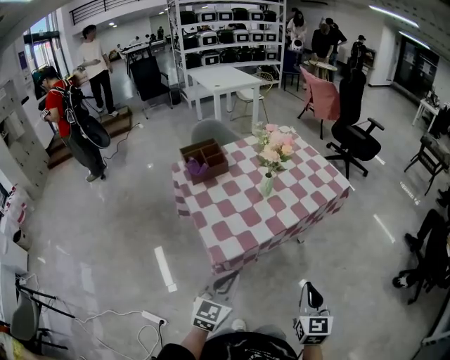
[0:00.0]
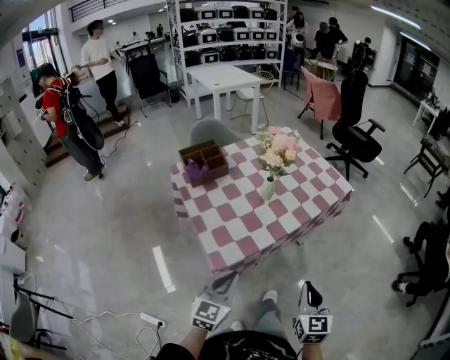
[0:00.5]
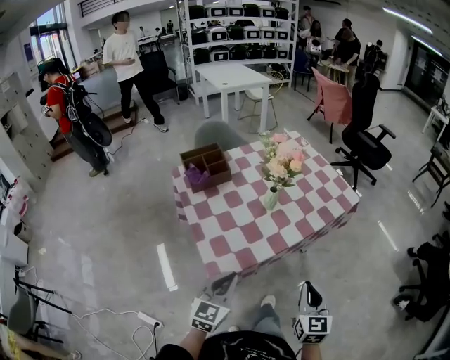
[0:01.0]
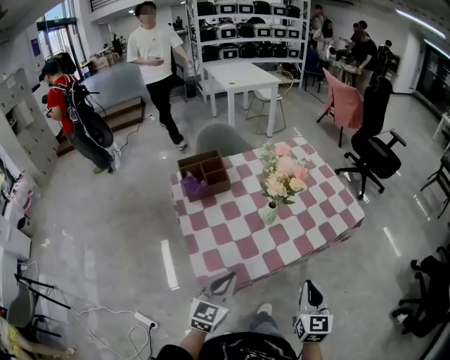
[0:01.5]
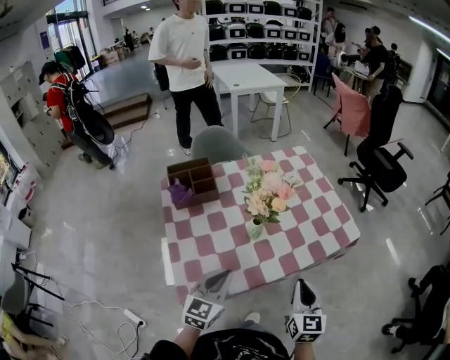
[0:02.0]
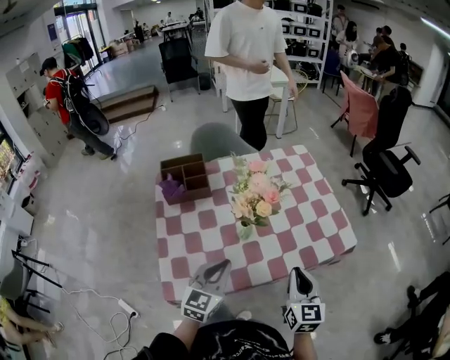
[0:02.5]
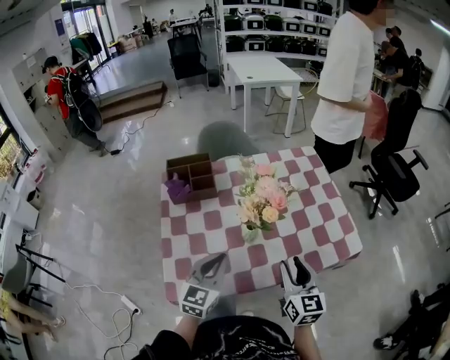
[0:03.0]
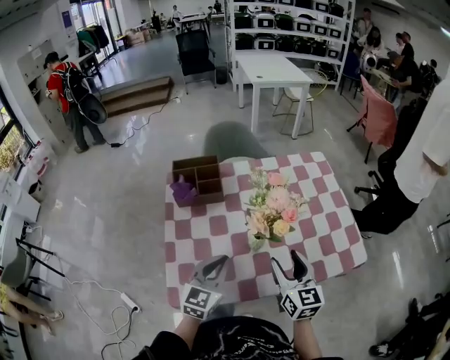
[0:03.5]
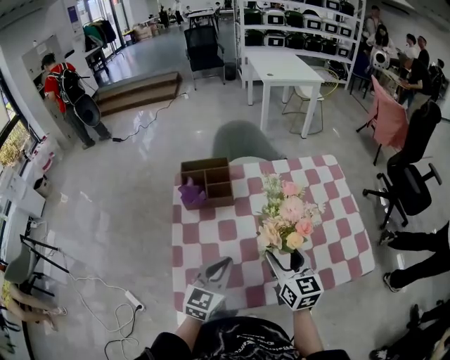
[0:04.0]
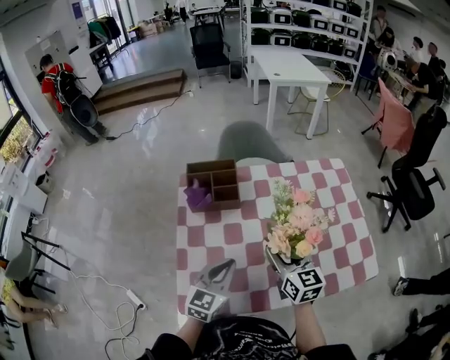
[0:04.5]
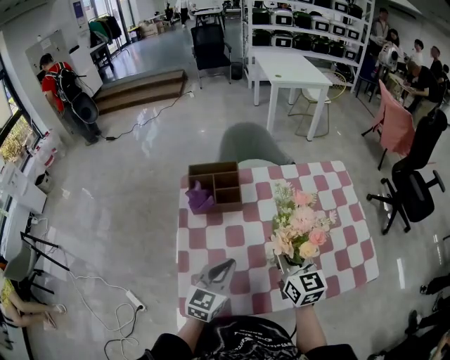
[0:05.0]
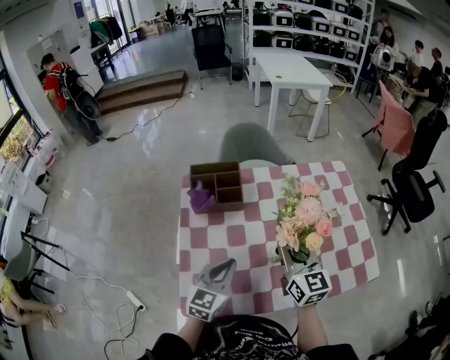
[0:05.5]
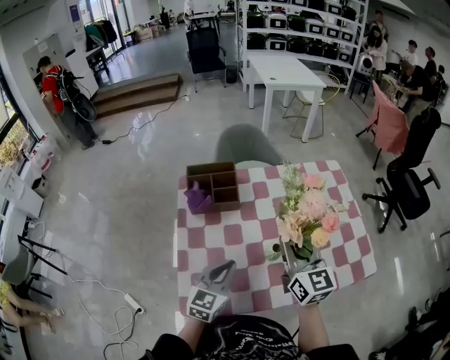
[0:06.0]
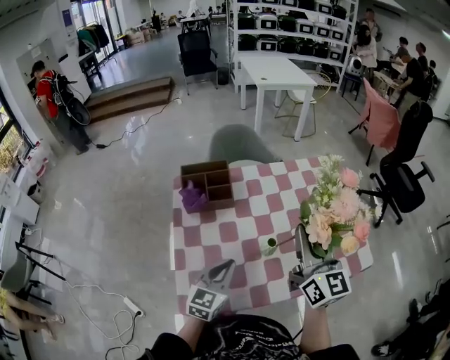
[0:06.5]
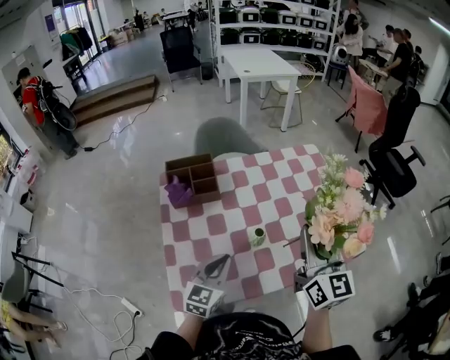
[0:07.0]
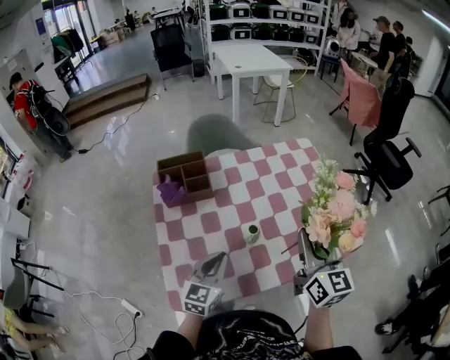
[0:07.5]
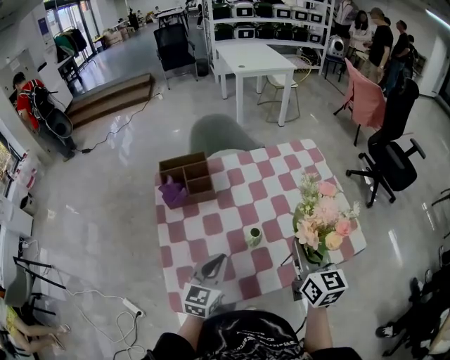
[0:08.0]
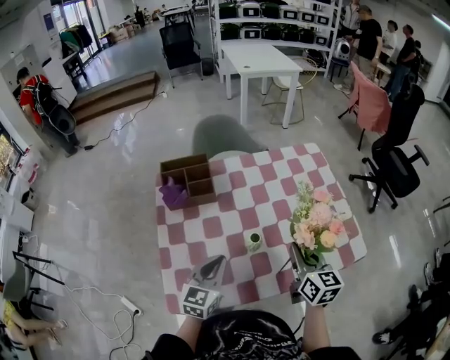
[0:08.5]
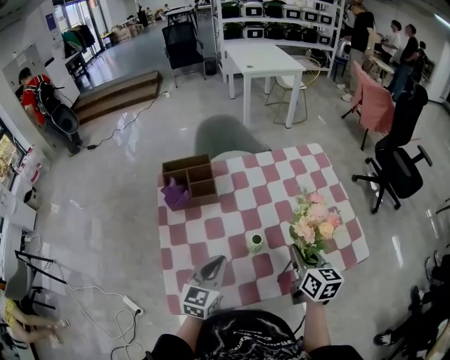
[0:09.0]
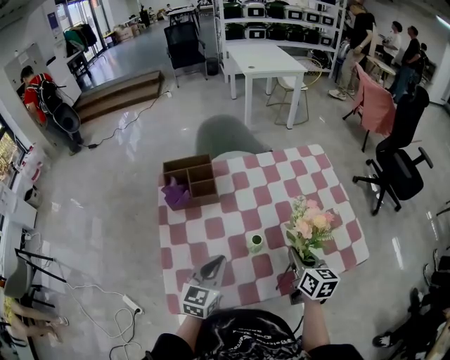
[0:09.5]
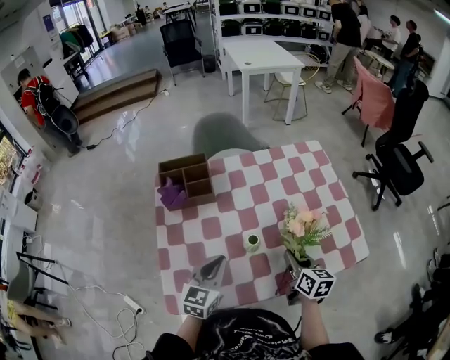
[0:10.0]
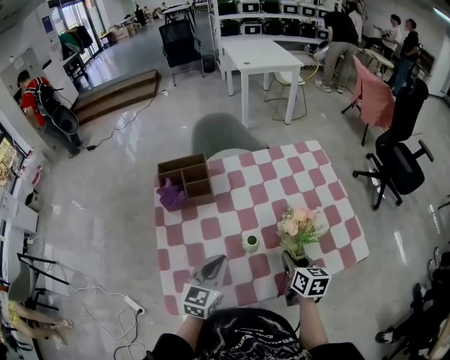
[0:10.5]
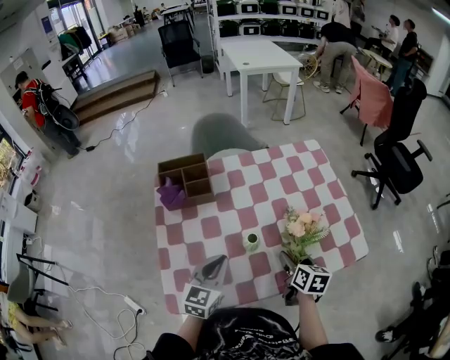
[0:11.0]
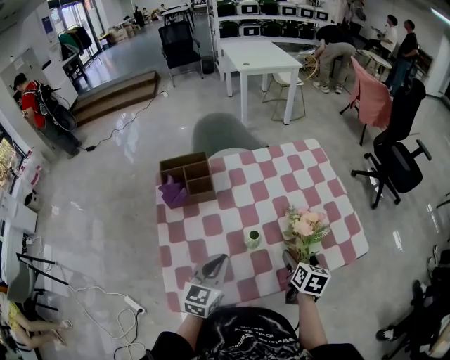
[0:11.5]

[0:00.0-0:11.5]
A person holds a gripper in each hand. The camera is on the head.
0:00.0 to 0:02.0: Both grippers move forward, about 25 cm.
0:02.0 to 0:04.0: The right gripper is displaced forward and to the left by some 20 cm, rotates about 30 degrees, and opens its fingers; the left gripper shifts roughly 10 cm forward.
0:04.0 to 0:06.0: The right gripper heads upward, covering about 10 cm, and closes up.
0:06.0 to 0:07.5: The right gripper heads to the right and backward, covering about 15 cm.
0:07.5 to 0:09.5: The right gripper goes roughly 15 cm downward, and turns by approximately 30 degrees.
0:09.5 to 0:11.5: The right gripper is displaced downward by about 5 cm, swivels about 20 degrees, and opens.

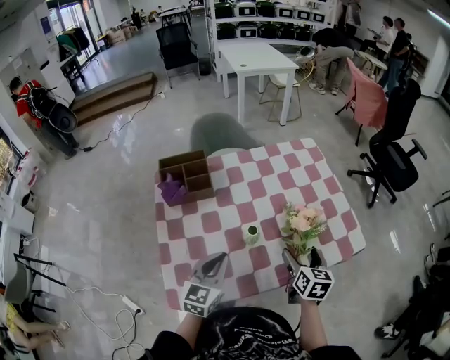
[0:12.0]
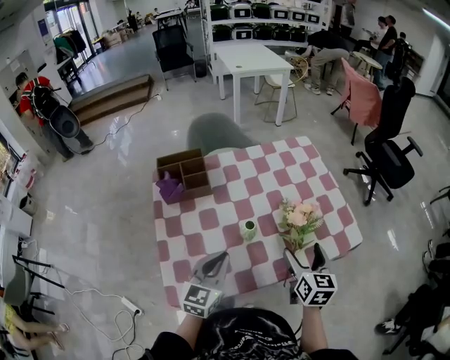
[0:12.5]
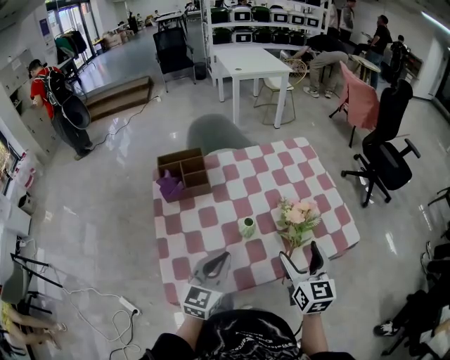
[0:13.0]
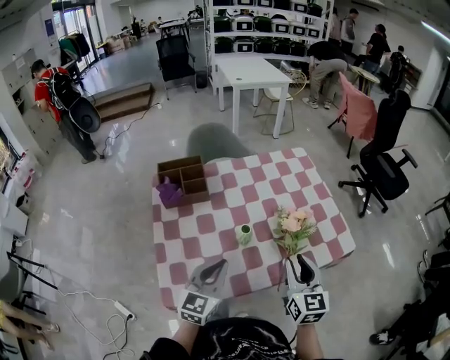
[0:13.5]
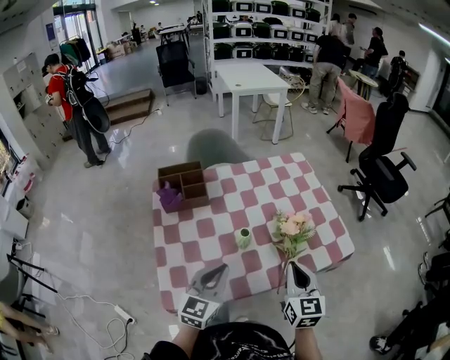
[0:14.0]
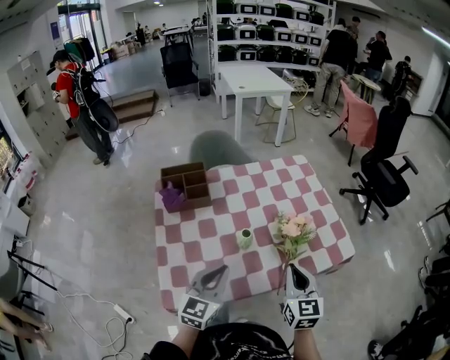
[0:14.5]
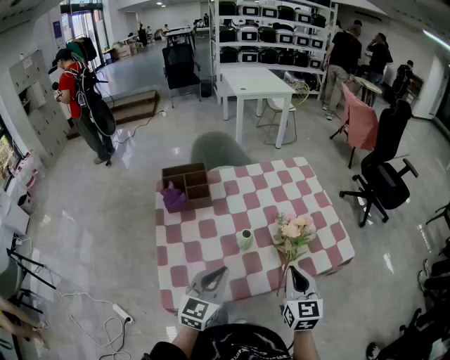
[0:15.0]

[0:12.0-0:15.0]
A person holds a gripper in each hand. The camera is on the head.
0:12.0 to 0:13.5: The right gripper shifts approximately 10 cm upward and backward, changes its angle by about 20 degrees, and closes up. The left gripper ends up approximately 5 cm from where it was.
0:13.5 to 0:15.0: There are only small adjustments of the grippers.

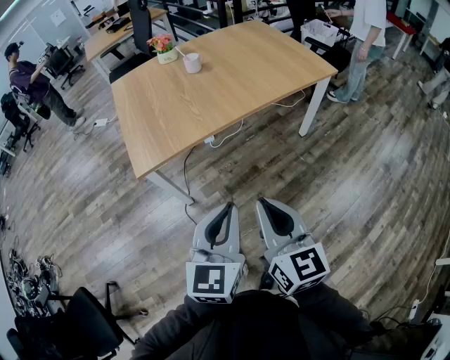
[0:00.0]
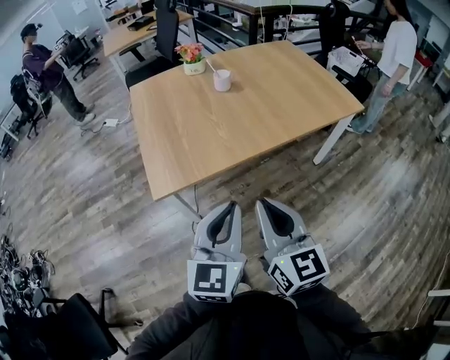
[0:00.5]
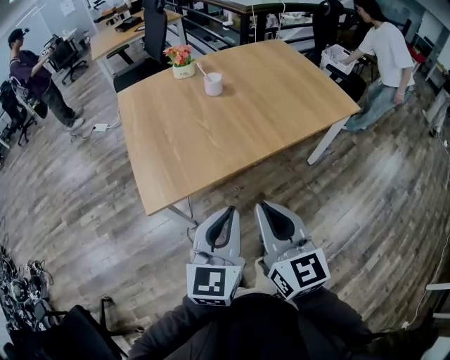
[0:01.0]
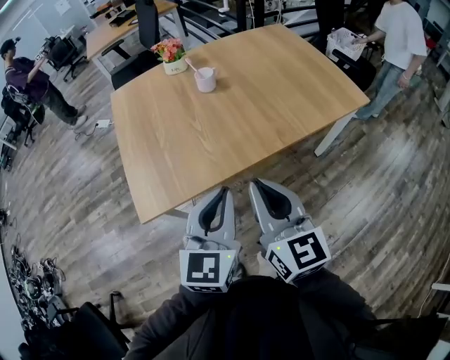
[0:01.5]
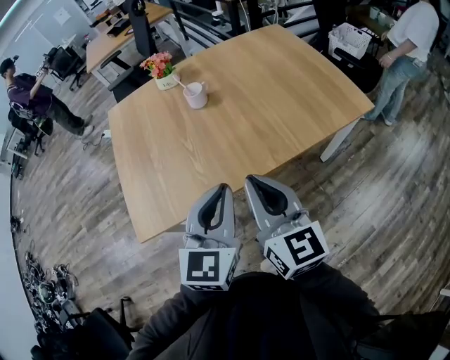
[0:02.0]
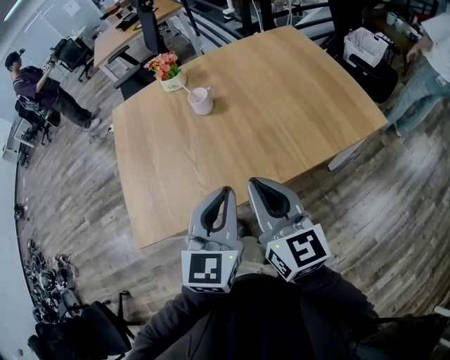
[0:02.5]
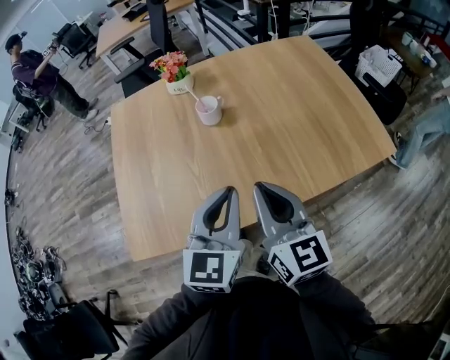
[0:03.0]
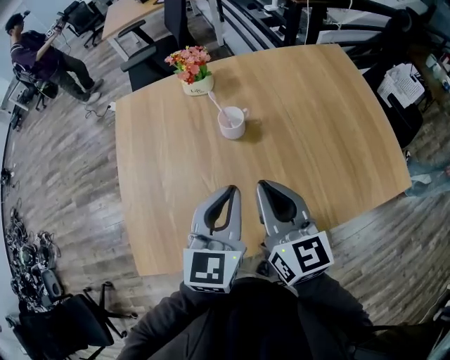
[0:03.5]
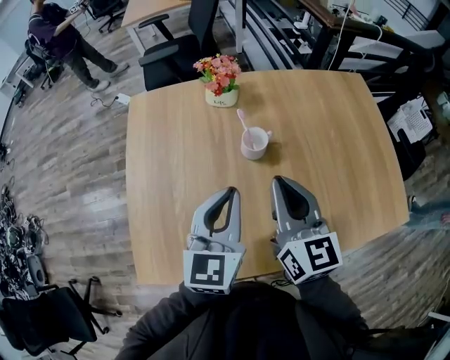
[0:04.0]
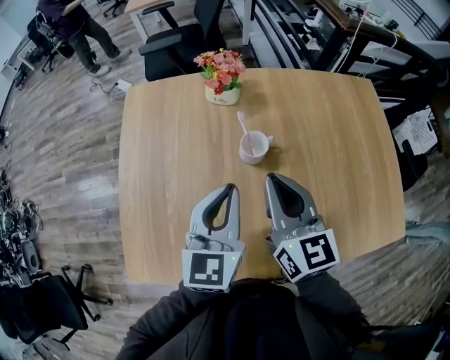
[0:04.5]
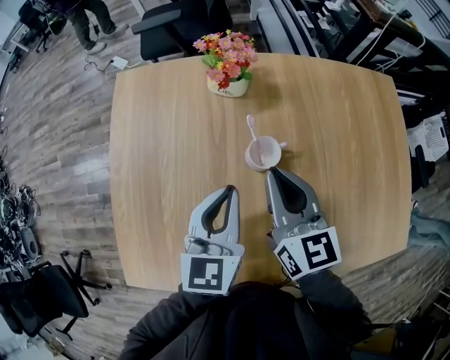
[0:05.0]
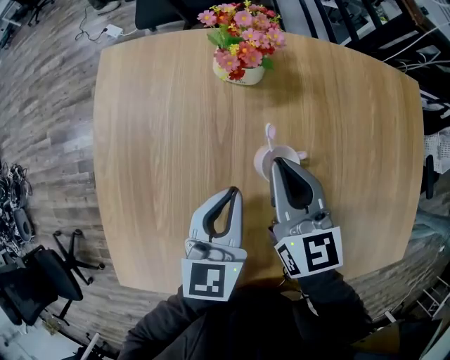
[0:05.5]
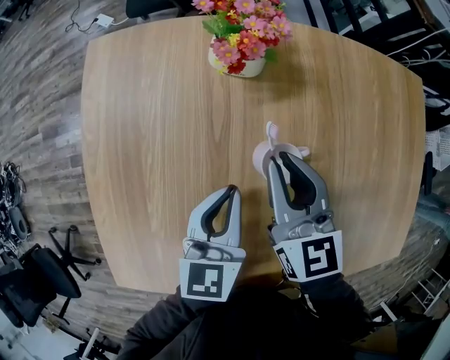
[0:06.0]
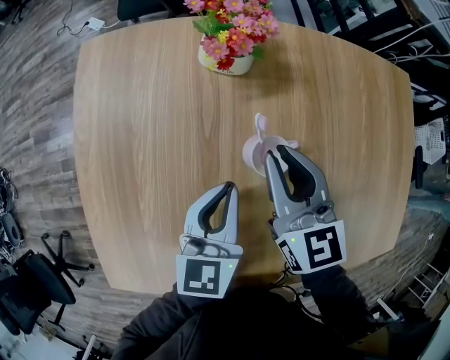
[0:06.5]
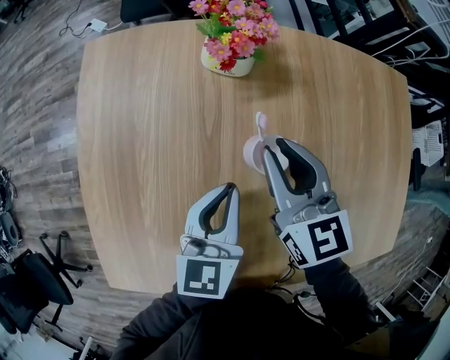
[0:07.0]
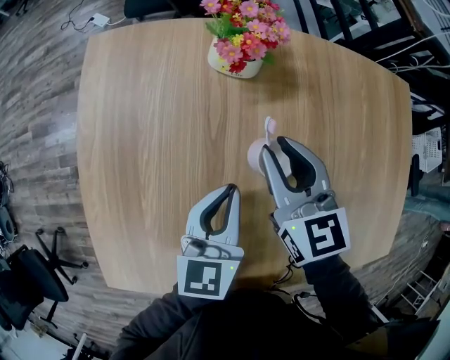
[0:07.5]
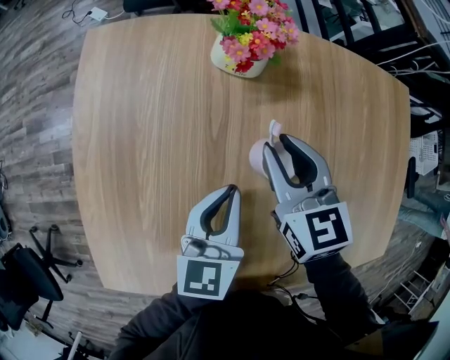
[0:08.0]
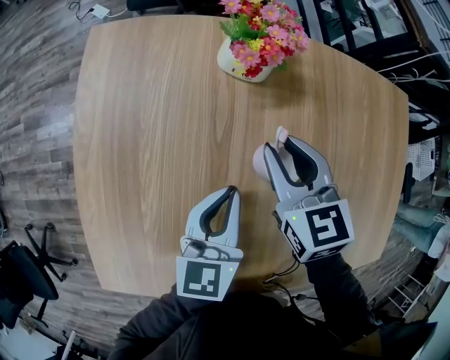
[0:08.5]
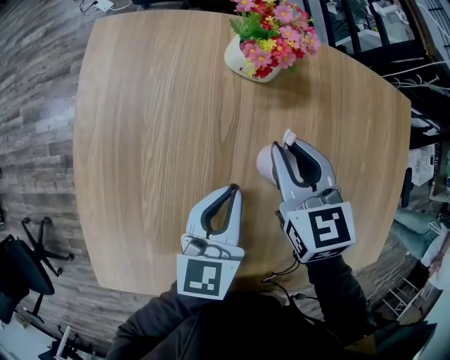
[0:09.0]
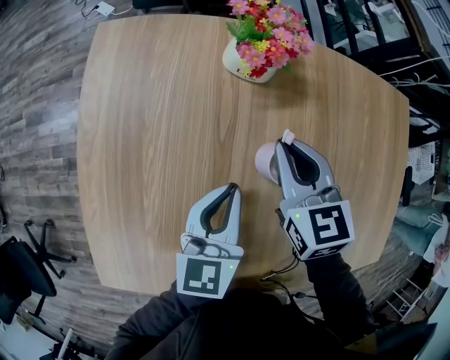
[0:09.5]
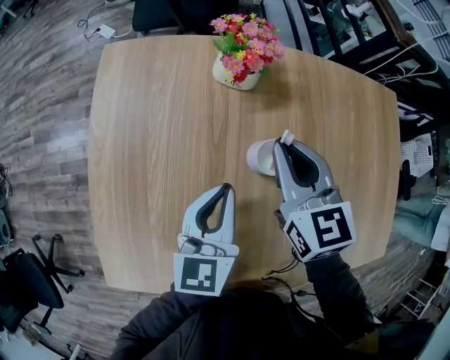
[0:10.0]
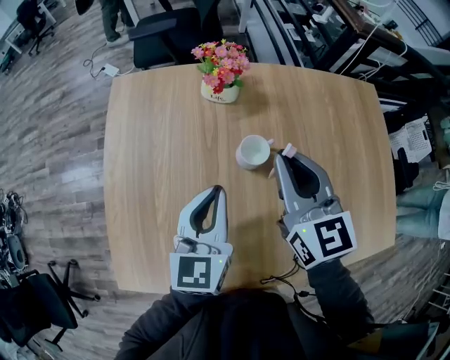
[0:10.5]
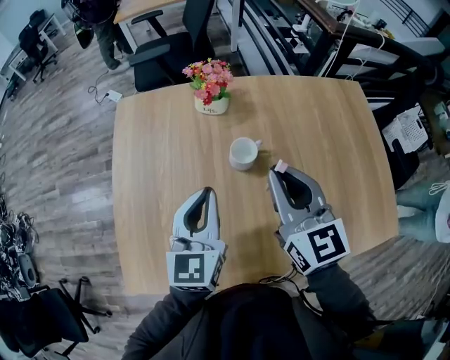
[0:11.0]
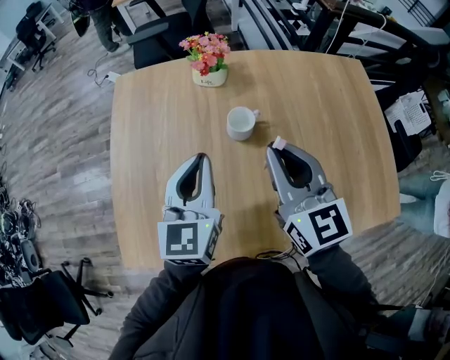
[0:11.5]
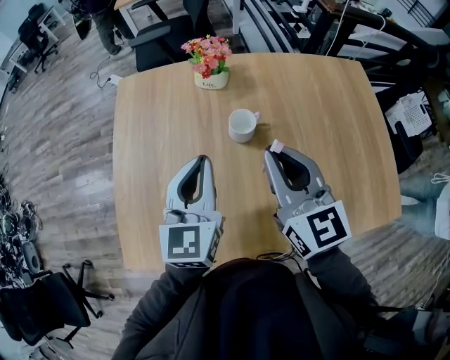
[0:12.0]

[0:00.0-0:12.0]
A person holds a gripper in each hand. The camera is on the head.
0:00.0 to 0:02.0: The grippers both shift forward by some 35 cm.
0:02.0 to 0:04.0: The two grippers go roughly 30 cm forward.
0:04.0 to 0:06.0: The left gripper travels downward and forward by about 20 cm, and swivels about 20 degrees; the right gripper moves forward and downward, roughly 25 cm.
0:06.0 to 0:08.0: The grippers make only small movements.
0:08.0 to 0:10.0: The right gripper shifts approximately 5 cm upward, and closes up.
0:10.0 to 0:12.0: The left gripper is displaced upward and backward by approximately 15 cm. Meanwhile the right gripper is displaced backward and upward by approximately 20 cm.
